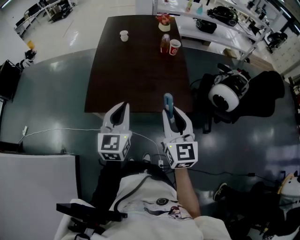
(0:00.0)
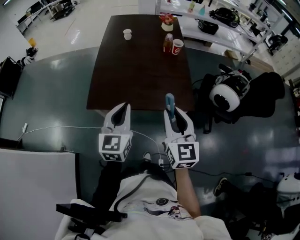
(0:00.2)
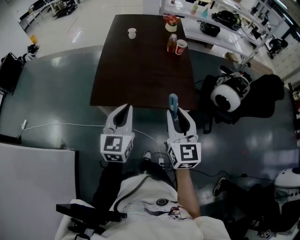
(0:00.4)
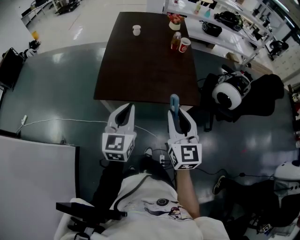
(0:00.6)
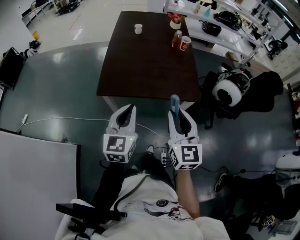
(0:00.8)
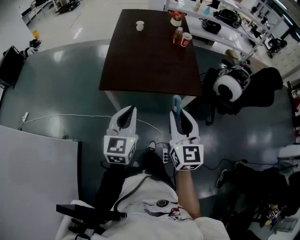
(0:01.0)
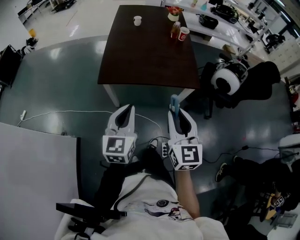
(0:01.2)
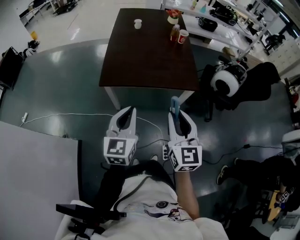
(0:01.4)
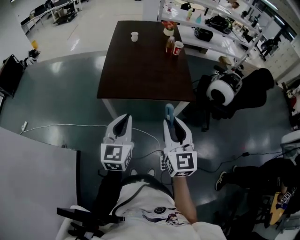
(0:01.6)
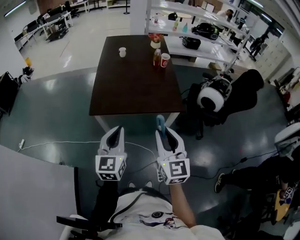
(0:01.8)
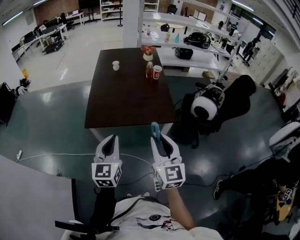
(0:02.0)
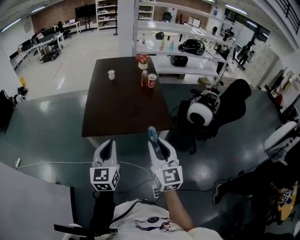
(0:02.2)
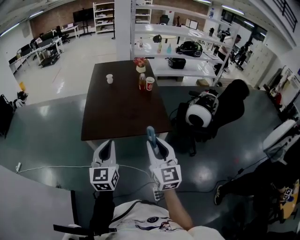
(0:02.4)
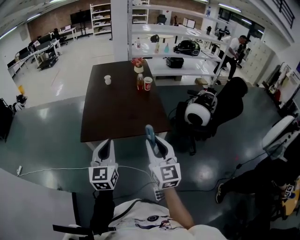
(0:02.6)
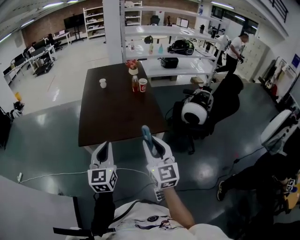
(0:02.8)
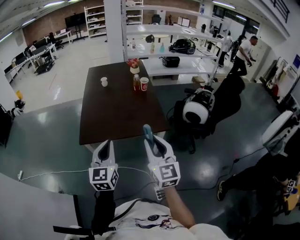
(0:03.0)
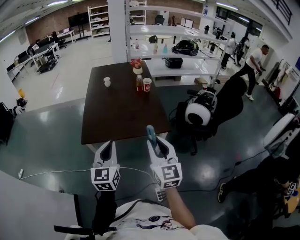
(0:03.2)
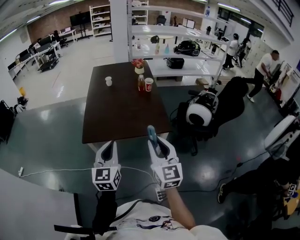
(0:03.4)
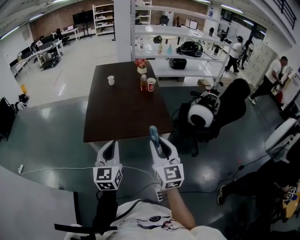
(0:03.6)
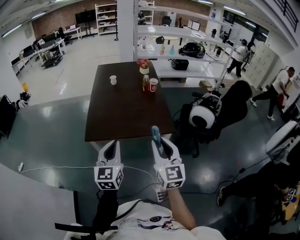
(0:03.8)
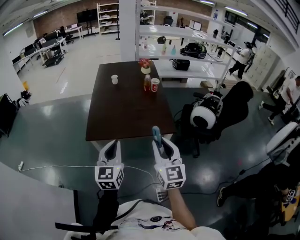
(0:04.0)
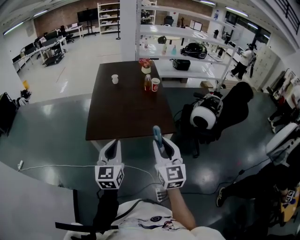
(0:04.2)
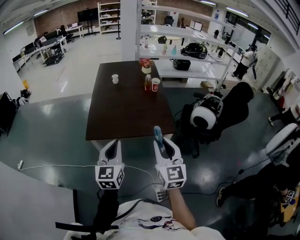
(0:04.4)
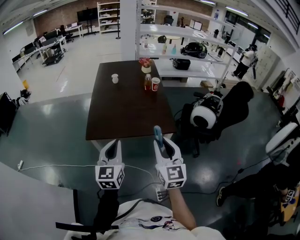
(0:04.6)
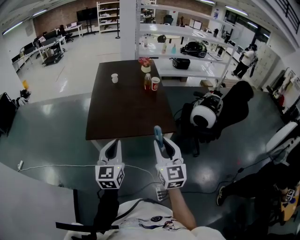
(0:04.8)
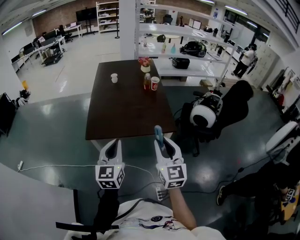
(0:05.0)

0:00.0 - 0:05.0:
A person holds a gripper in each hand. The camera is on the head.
0:00.0 - 0:01.6: Both grippers move backward, about 20 cm.
0:01.6 - 0:03.4: The right gripper heads to the right, covering approximately 5 cm. Meanwhile the left gripper shifts by roughly 5 cm.
0:03.4 - 0:05.0: The grippers make only small movements.

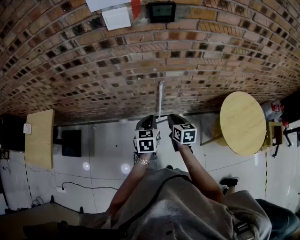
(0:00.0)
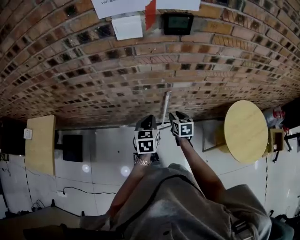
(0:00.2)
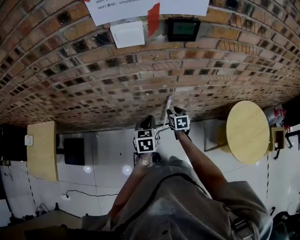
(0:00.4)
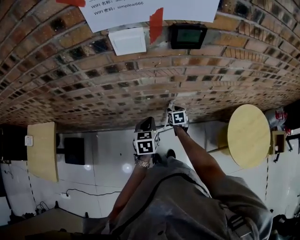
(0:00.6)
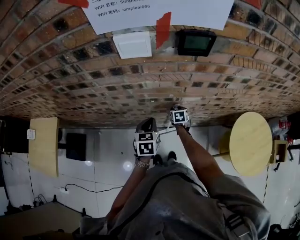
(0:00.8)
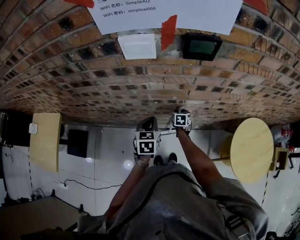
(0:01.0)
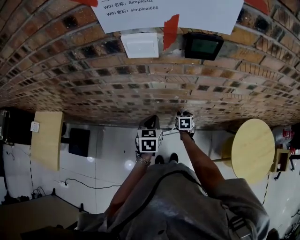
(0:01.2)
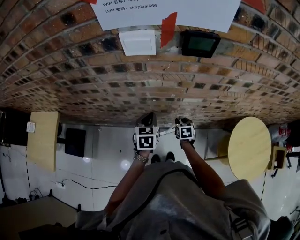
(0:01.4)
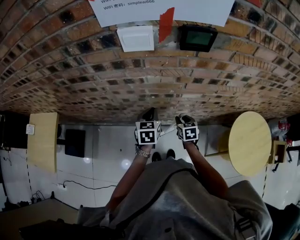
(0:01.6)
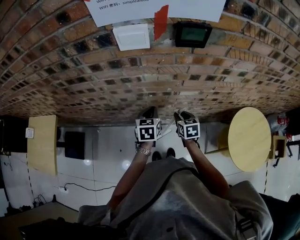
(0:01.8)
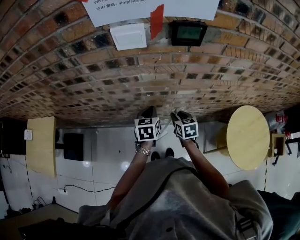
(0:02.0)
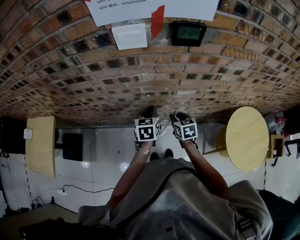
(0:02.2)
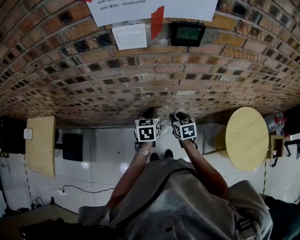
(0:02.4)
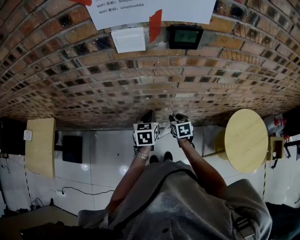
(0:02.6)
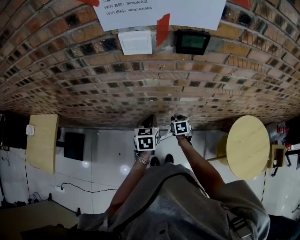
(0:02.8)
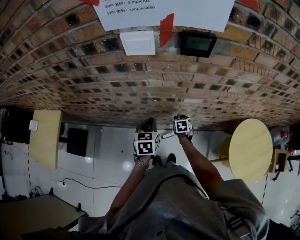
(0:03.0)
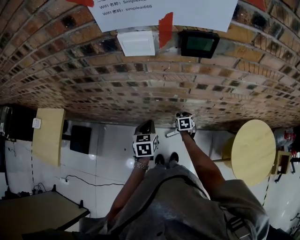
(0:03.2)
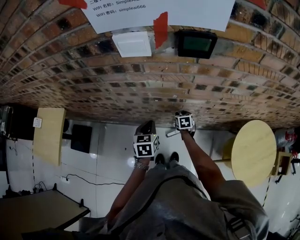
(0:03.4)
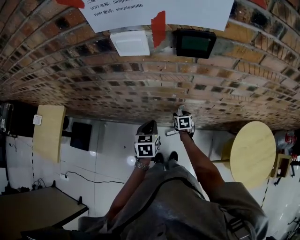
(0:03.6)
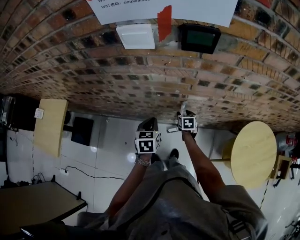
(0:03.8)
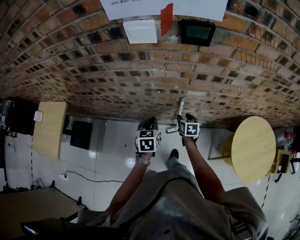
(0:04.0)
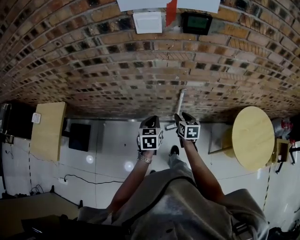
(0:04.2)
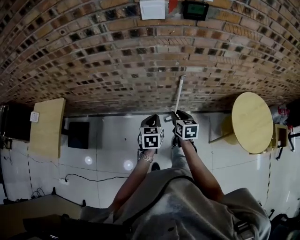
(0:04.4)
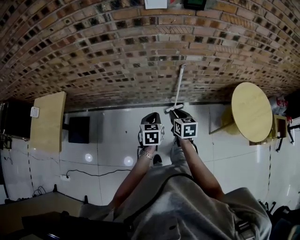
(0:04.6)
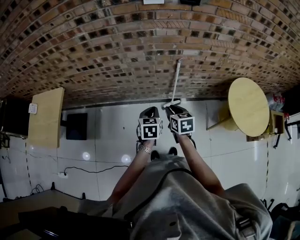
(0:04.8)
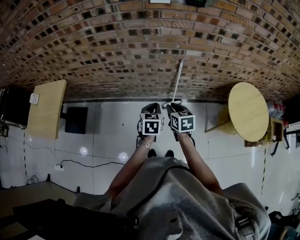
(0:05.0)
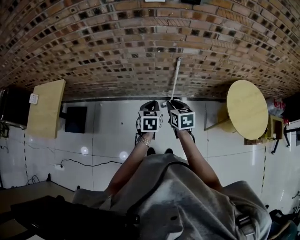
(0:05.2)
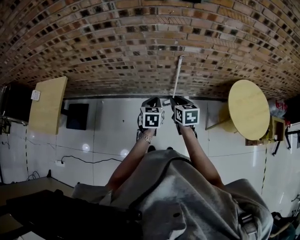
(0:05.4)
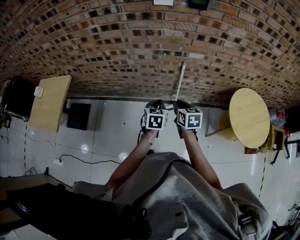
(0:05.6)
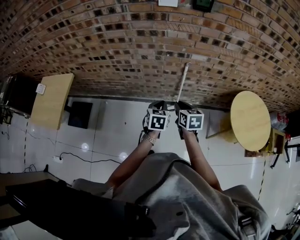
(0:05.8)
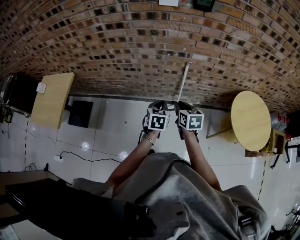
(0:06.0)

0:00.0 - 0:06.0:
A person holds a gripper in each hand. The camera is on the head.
0:00.0 - 0:01.6: The left gripper shifts roughly 20 cm forward, while the right gripper shifts approximately 15 cm forward and downward.
0:01.6 - 0:03.0: The right gripper goes some 10 cm downward.
0:03.0 - 0:04.4: The left gripper heads backward, covering about 15 cm, while the right gripper moves backward, upward and to the left, approximately 30 cm, rotates approximately 20 degrees, and opens, then closes once more.
0:04.4 - 0:06.0: The left gripper heads backward, covering some 10 cm, while the right gripper moves backward and upward, approximately 10 cm.

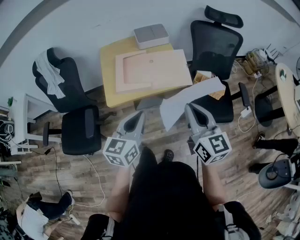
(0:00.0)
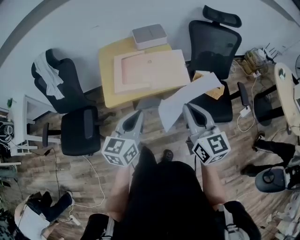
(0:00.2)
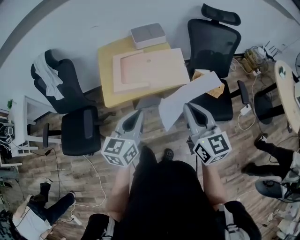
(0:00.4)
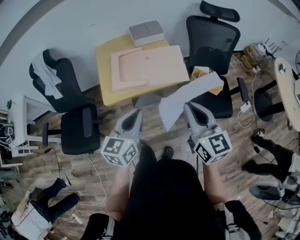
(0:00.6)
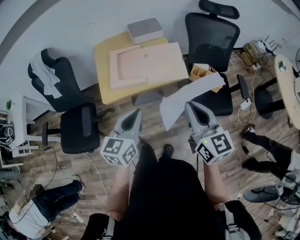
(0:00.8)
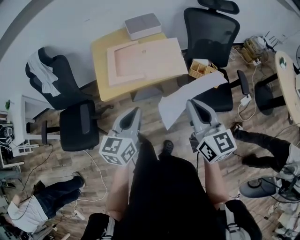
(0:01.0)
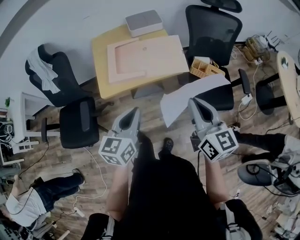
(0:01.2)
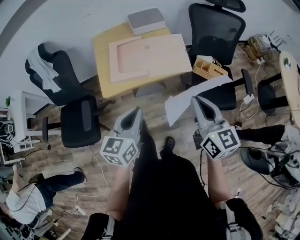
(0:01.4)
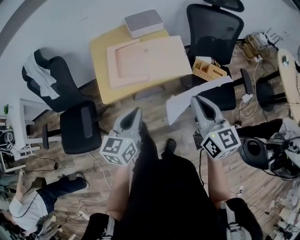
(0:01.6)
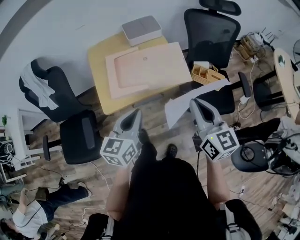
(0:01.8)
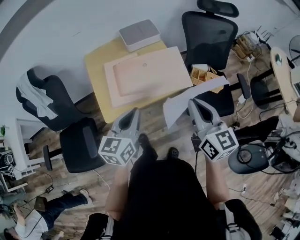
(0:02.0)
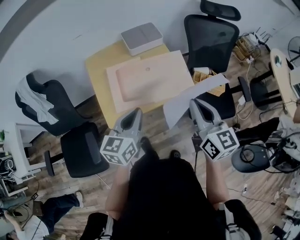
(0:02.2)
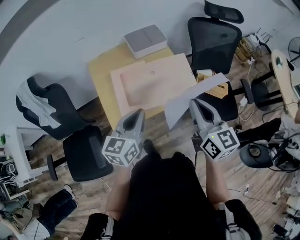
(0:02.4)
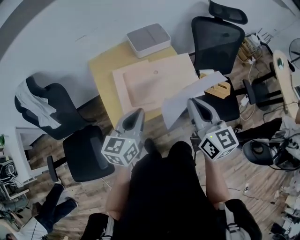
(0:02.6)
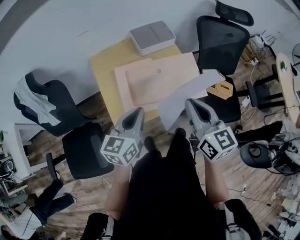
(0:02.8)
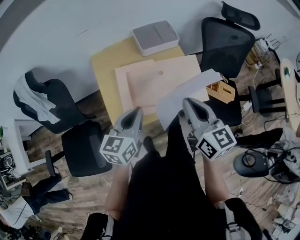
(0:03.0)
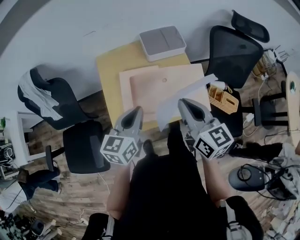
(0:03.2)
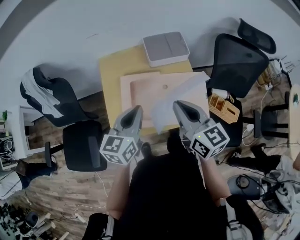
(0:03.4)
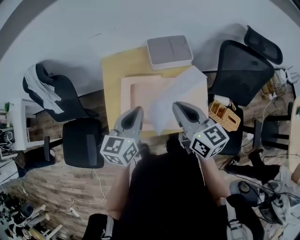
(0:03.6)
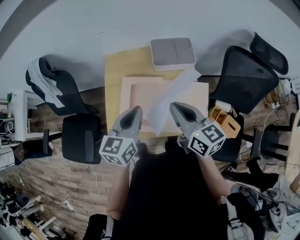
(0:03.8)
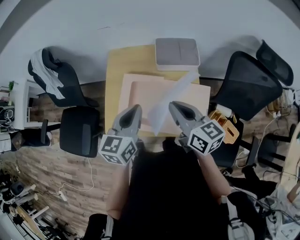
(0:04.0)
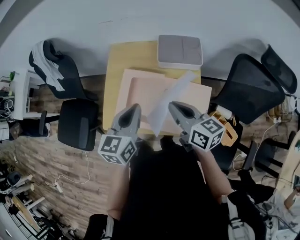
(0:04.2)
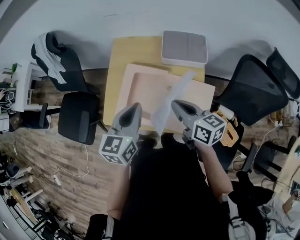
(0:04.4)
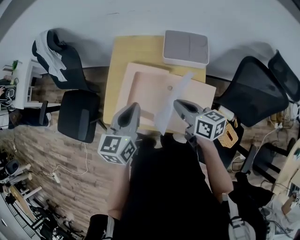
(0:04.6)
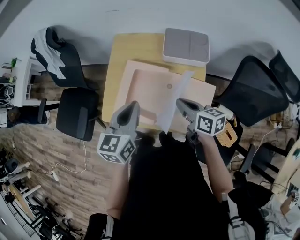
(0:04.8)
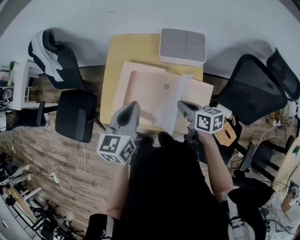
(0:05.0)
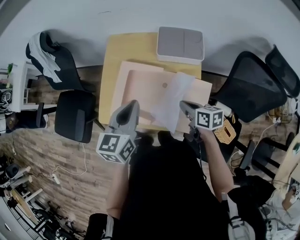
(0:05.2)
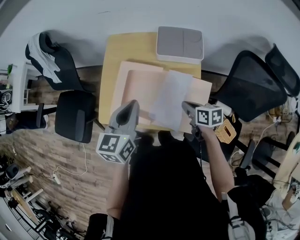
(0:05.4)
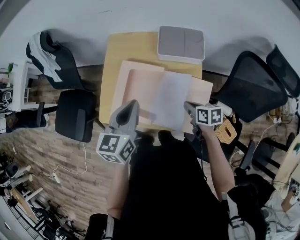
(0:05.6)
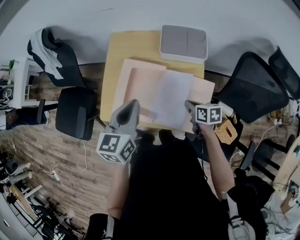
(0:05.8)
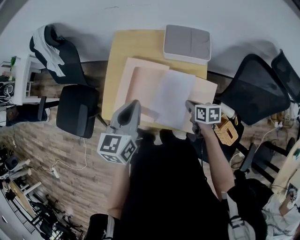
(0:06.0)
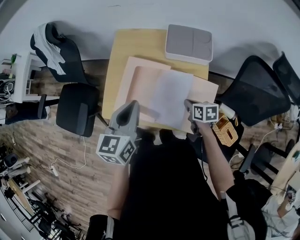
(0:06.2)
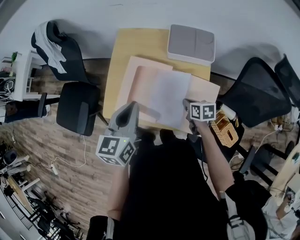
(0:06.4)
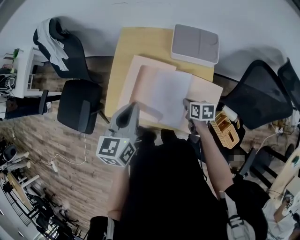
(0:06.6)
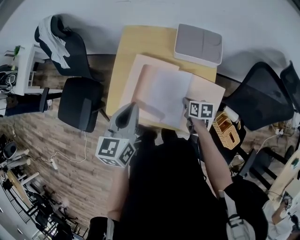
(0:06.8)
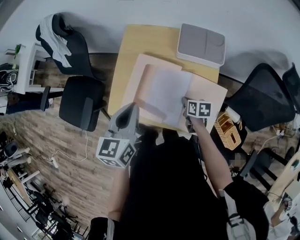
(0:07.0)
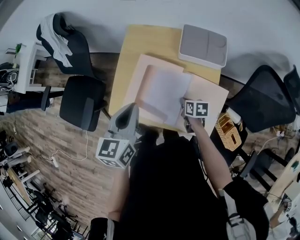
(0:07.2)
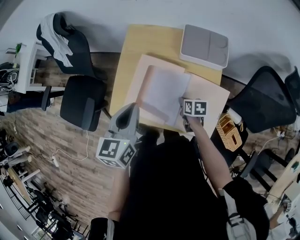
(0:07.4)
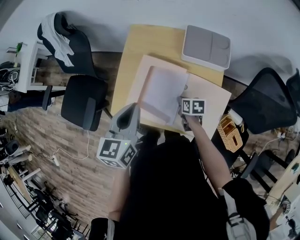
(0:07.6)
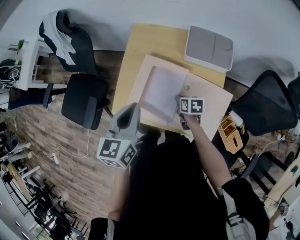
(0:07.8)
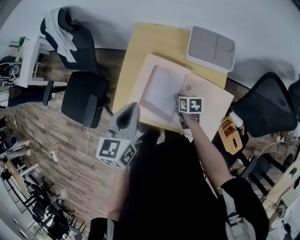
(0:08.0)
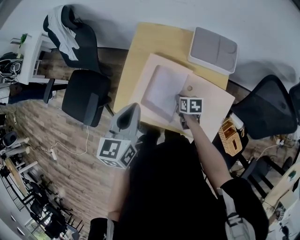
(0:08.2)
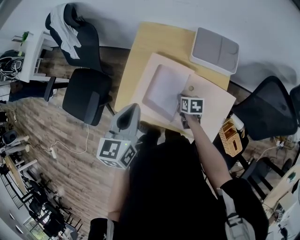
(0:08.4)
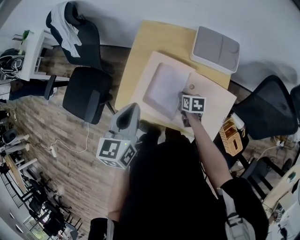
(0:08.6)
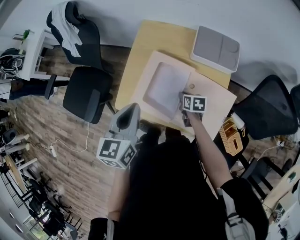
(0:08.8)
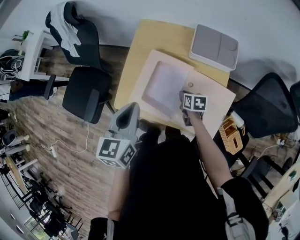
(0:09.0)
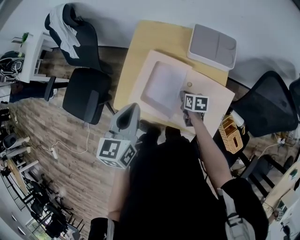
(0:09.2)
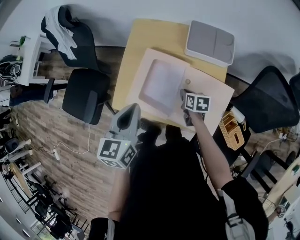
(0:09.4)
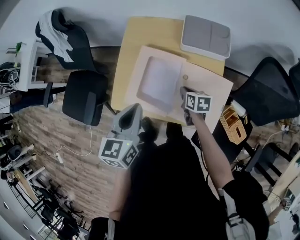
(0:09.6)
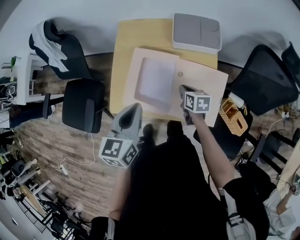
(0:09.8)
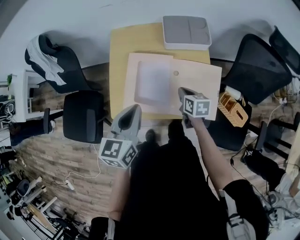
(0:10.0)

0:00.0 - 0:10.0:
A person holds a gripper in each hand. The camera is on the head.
0:00.0 - 0:01.4: The grippers stay close to where they were, moving slightly.
0:01.4 - 0:02.8: The grippers both shift forward and to the left by about 30 cm.
0:02.8 - 0:04.2: The right gripper changes place by approximately 20 cm, and rotates approximately 40 degrees. The left gripper moves about 15 cm, and swivels roughly 30 degrees.
0:04.2 - 0:05.8: The right gripper travels downward and to the right by roughly 25 cm, and points its fingers roughly 30 degrees further downward.
0:05.8 - 0:07.2: The left gripper shifts some 5 cm to the left; the right gripper goes approximately 10 cm to the left, downward and forward.
0:07.2 - 0:08.6: The right gripper shifts by some 5 cm.
0:08.6 - 0:10.0: The right gripper is displaced upward and backward by about 10 cm.

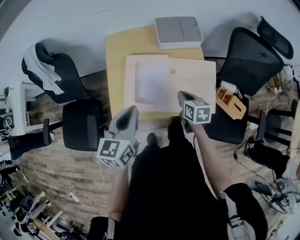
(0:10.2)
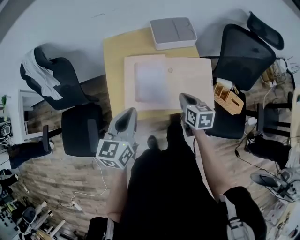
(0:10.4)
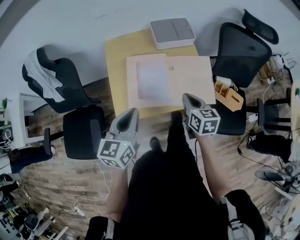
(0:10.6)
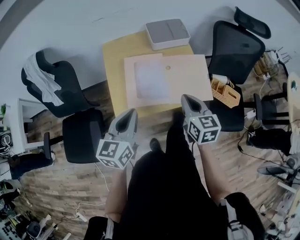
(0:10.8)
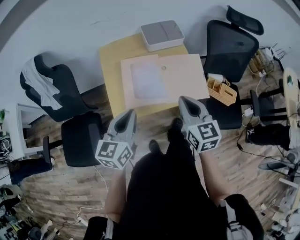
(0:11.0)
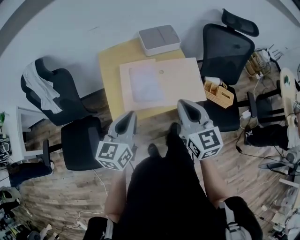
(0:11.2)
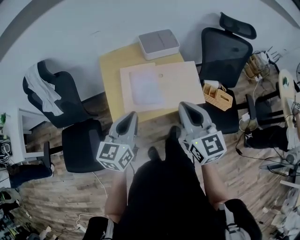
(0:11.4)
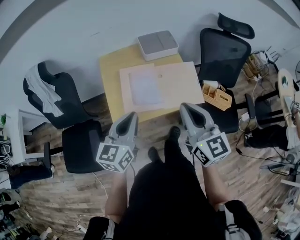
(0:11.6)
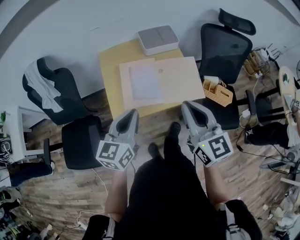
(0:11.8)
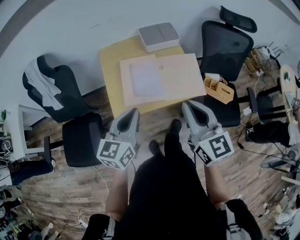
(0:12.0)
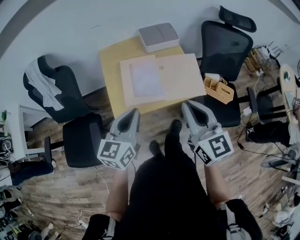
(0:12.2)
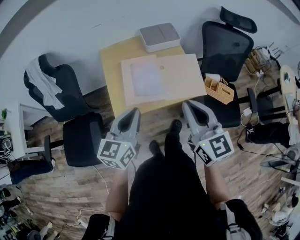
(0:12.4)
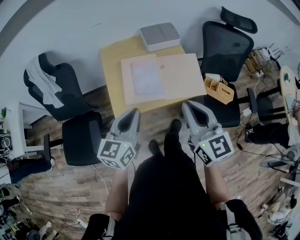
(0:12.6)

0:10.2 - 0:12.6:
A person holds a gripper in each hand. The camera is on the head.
0:10.2 - 0:11.4: The right gripper heads upward and backward, covering approximately 30 cm, and tilts its fingers approximately 30 degrees upward; the left gripper heads backward and upward, covering some 10 cm.
0:11.4 - 0:12.6: The grippers stay close to where they were, moving slightly.
